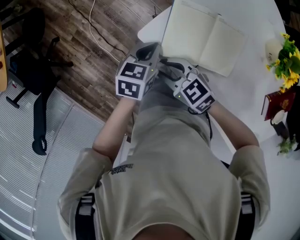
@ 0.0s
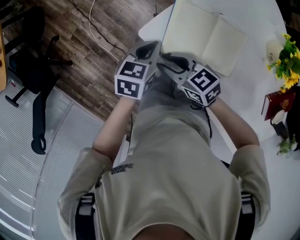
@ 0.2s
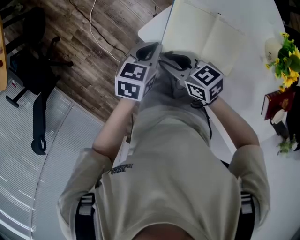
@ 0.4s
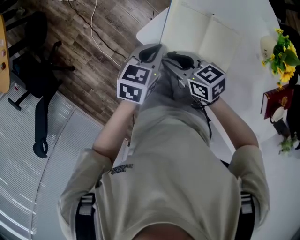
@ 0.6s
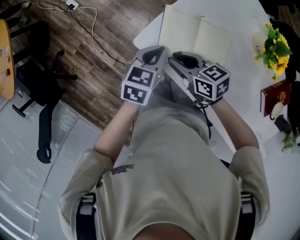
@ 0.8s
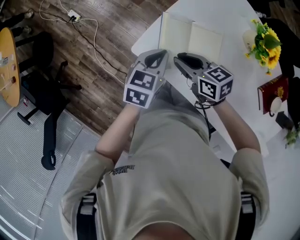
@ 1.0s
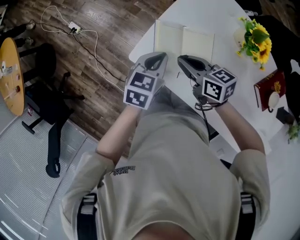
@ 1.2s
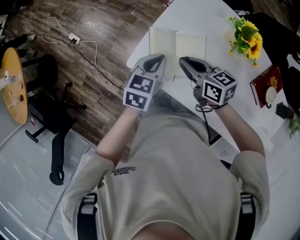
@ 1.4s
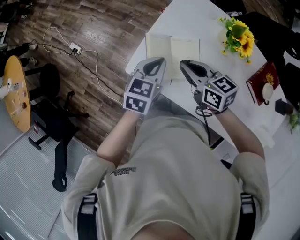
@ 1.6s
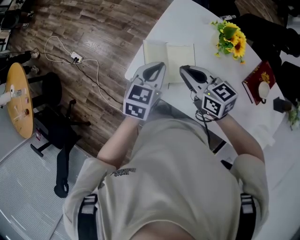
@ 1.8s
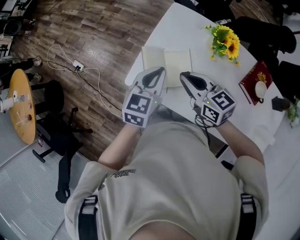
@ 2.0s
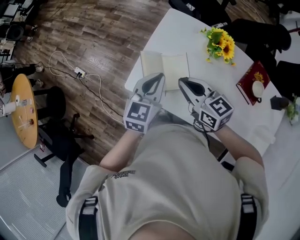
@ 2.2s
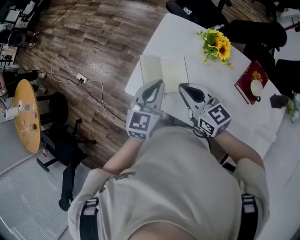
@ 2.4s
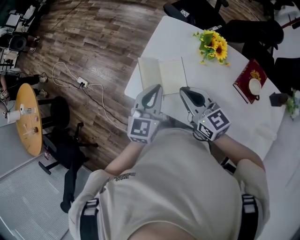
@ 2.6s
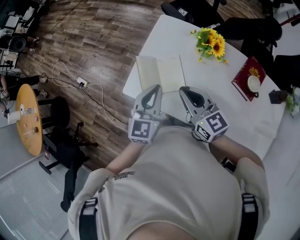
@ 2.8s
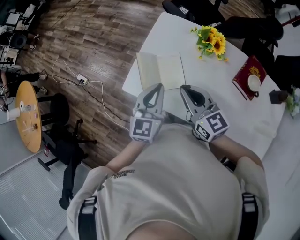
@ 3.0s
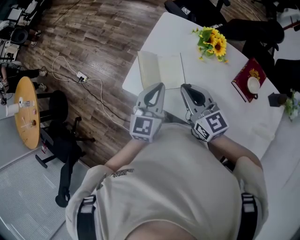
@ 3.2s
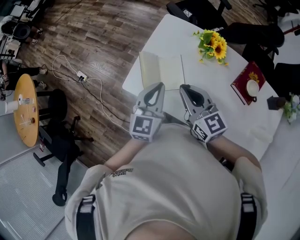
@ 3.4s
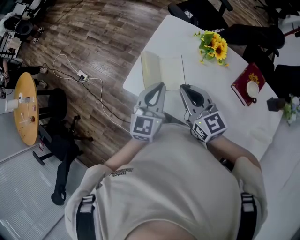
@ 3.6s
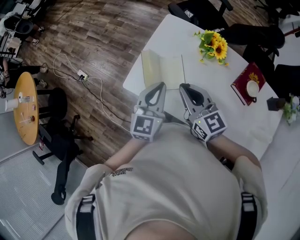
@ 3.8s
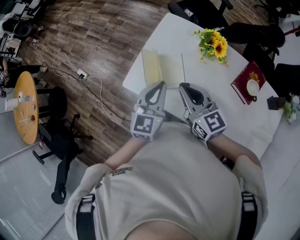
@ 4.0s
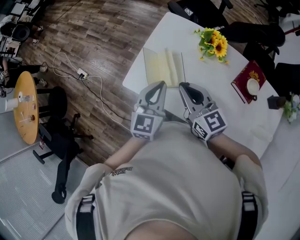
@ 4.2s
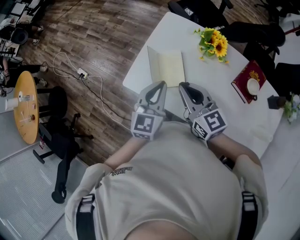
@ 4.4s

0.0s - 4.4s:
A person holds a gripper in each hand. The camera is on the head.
0.0s - 1.4s: The right gripper ends up approximately 20 cm from where it was, swivels approximately 40 degrees, and closes its fingers, while the left gripper travels upward by about 15 cm, and changes its angle by about 20 degrees.
1.4s - 3.0s: Both grippers move upward, backward and to the right, approximately 15 cm. The left gripper rotates roughly 30 degrees. The right gripper swivels about 30 degrees.
3.0s - 4.4s: The grippers move only a little.

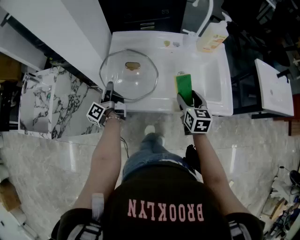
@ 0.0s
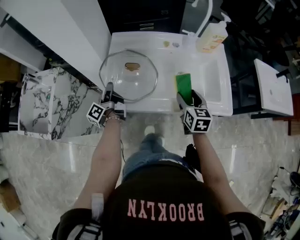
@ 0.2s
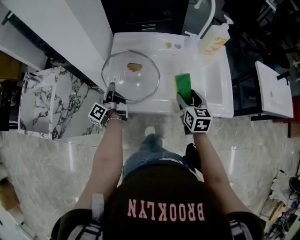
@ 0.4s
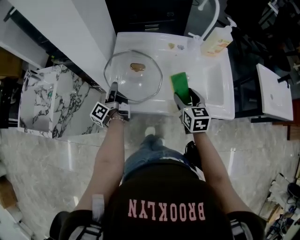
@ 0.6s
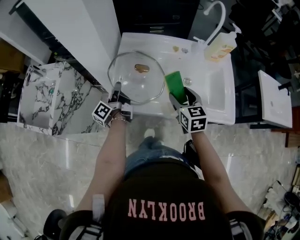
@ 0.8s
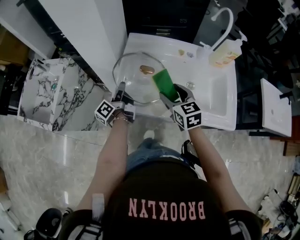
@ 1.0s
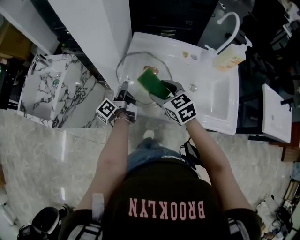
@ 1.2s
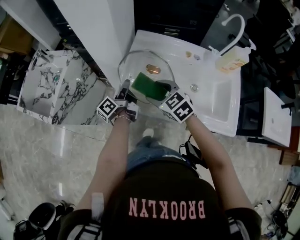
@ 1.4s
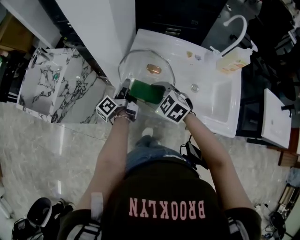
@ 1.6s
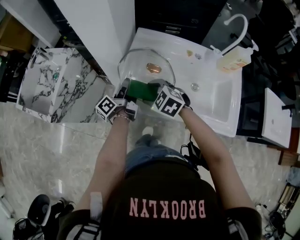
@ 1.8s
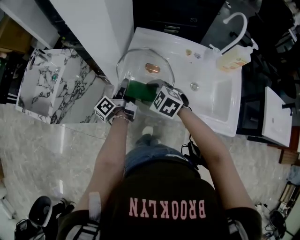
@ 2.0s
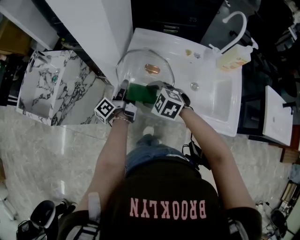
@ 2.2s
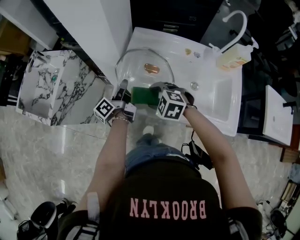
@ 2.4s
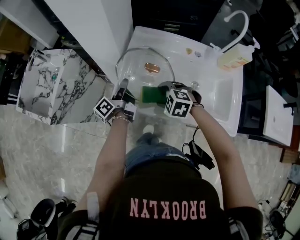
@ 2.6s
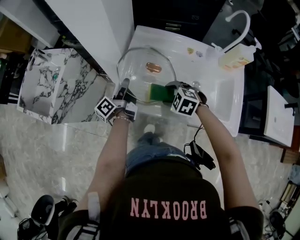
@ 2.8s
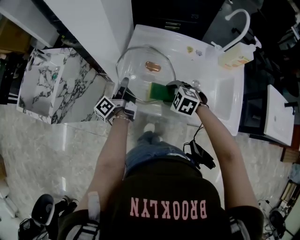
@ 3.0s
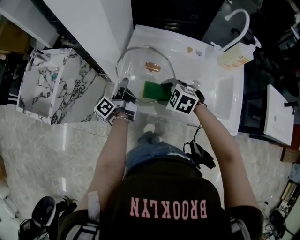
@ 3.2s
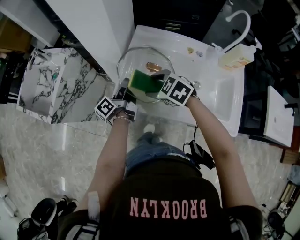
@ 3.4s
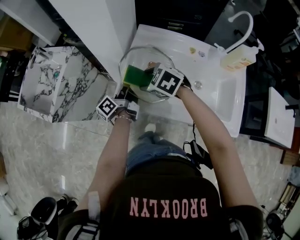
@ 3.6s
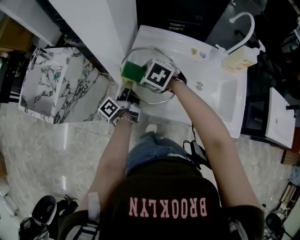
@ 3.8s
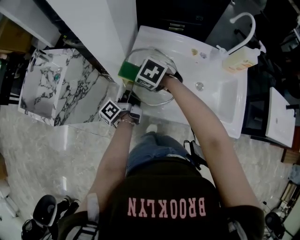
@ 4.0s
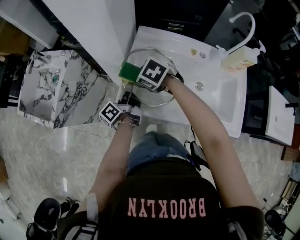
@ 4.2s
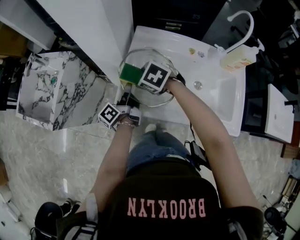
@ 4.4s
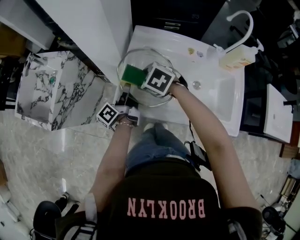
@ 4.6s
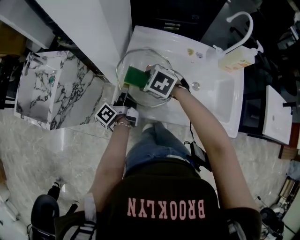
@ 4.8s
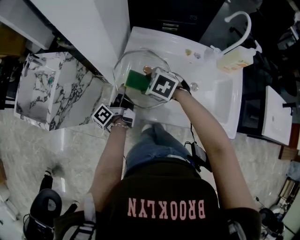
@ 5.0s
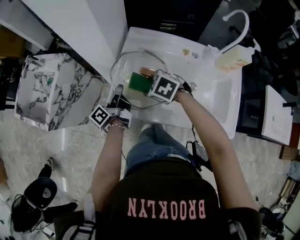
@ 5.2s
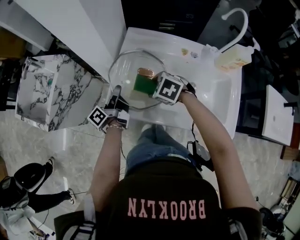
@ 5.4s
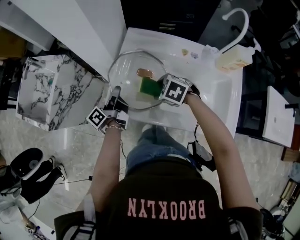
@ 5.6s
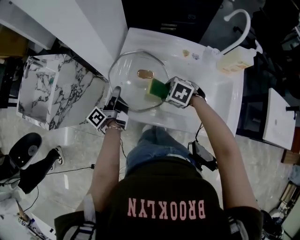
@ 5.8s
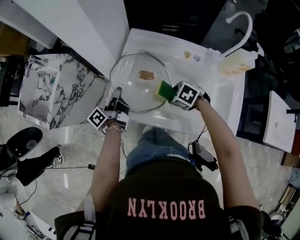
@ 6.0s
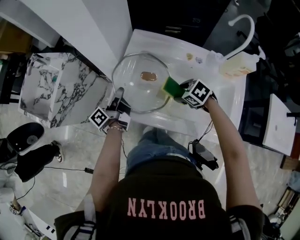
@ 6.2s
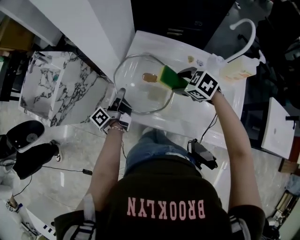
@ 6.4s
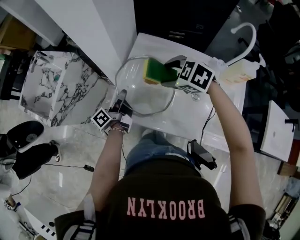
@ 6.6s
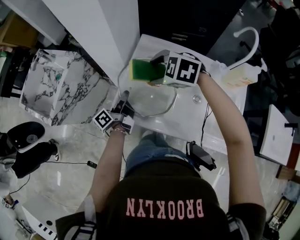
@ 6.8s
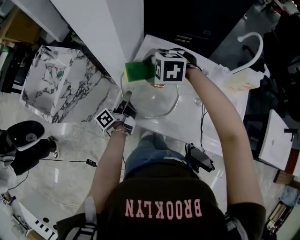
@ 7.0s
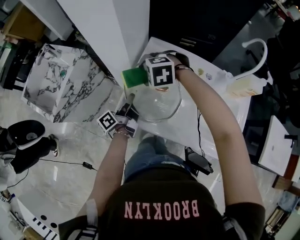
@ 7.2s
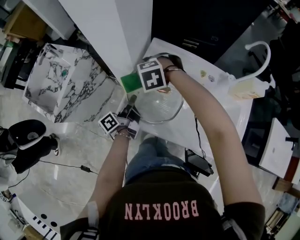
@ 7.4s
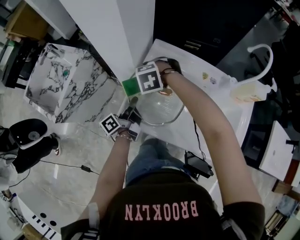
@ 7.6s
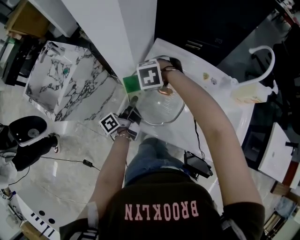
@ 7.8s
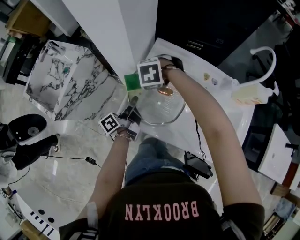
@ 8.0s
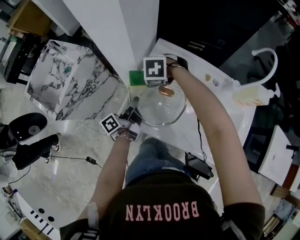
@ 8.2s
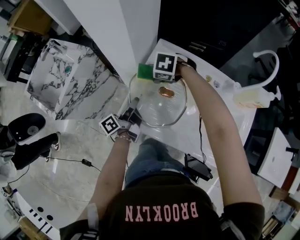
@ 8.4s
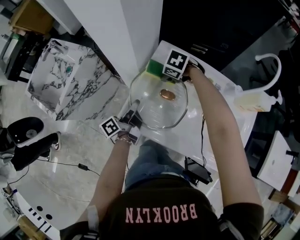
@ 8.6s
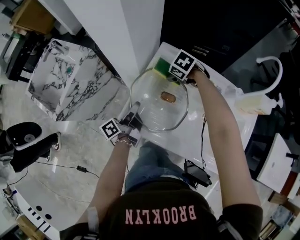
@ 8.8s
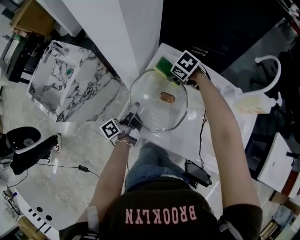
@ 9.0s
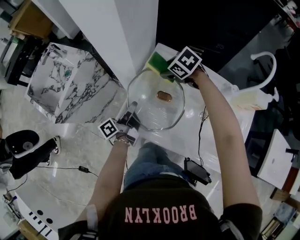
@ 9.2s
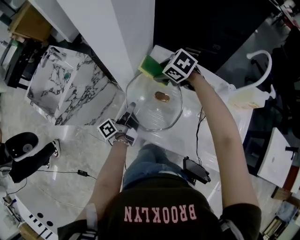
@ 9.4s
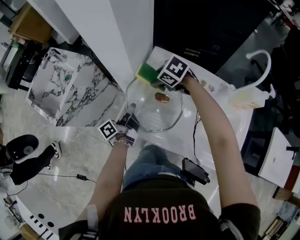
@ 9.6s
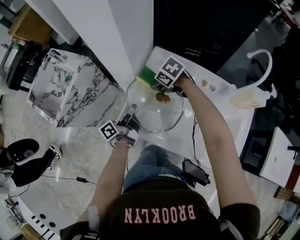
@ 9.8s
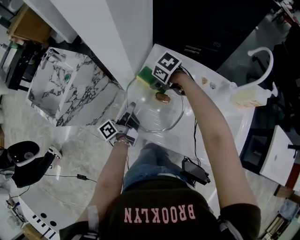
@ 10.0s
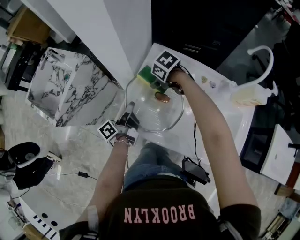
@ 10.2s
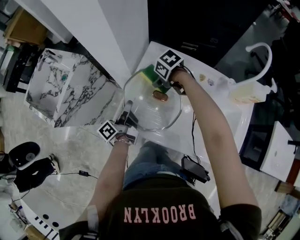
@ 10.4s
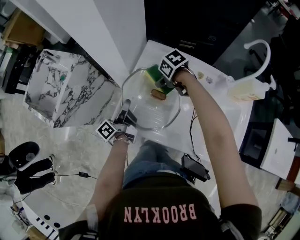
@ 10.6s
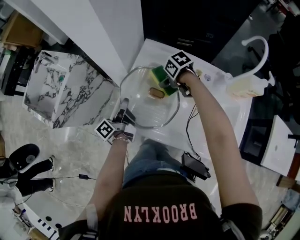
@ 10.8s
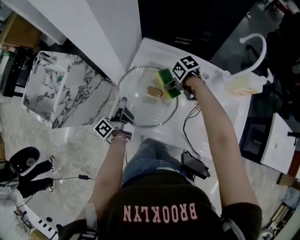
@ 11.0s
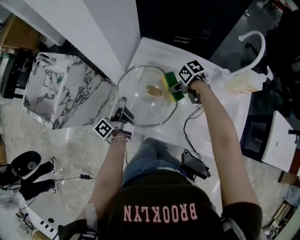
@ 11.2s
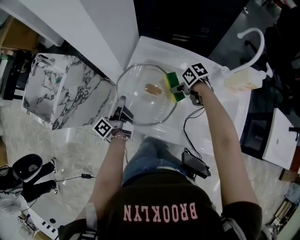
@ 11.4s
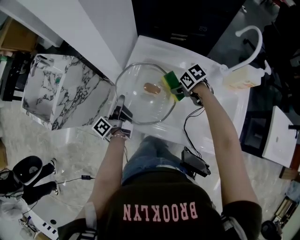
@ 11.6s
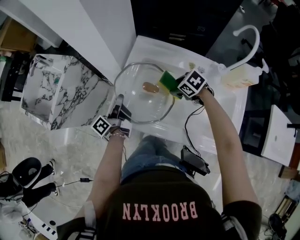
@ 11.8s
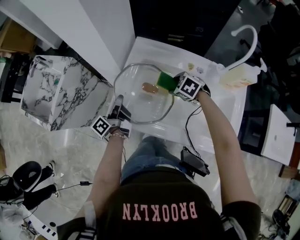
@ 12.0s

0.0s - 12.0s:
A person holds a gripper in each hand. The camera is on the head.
0.0s - 1.6s: The right gripper shifts by some 25 cm, and turns by roughly 70 degrees.
1.6s - 3.0s: The right gripper ends up some 10 cm from where it was.
3.0s - 4.4s: The right gripper shifts by roughly 15 cm.
4.4s - 6.0s: The right gripper moves some 20 cm.
6.0s - 7.6s: The right gripper ends up roughly 25 cm from where it was, and rolls counterclockwise, seen from behind, by some 50 degrees.
7.6s - 9.0s: The right gripper ends up about 15 cm from where it was, and rotates around the line of its fingers by some 50 degrees, clockwise from behind.
9.0s - 10.4s: The right gripper goes upward and returns, approximately 5 cm each way, and turns by about 20 degrees.
10.4s - 12.0s: The right gripper ends up approximately 15 cm from where it was, and turns by some 30 degrees.

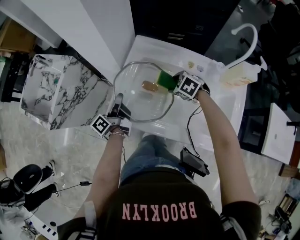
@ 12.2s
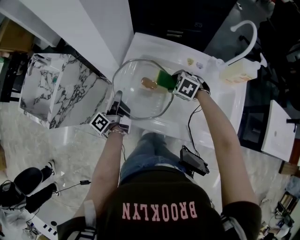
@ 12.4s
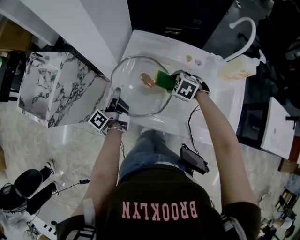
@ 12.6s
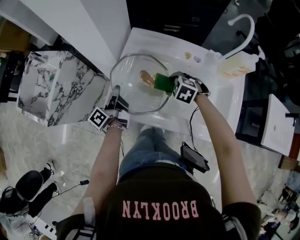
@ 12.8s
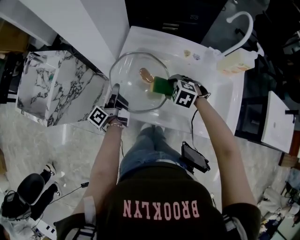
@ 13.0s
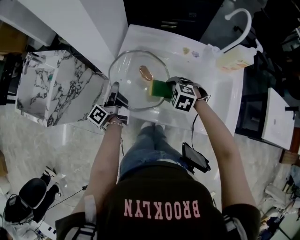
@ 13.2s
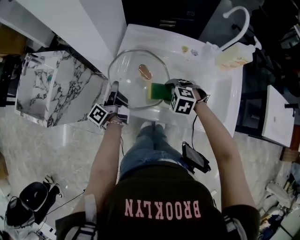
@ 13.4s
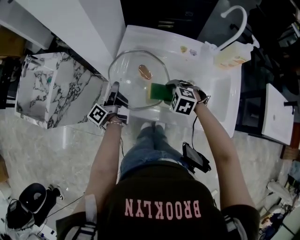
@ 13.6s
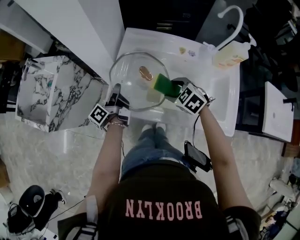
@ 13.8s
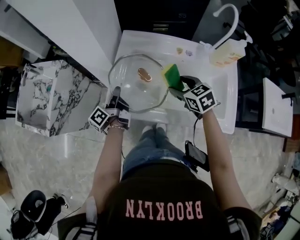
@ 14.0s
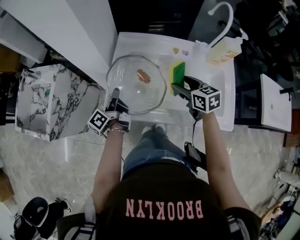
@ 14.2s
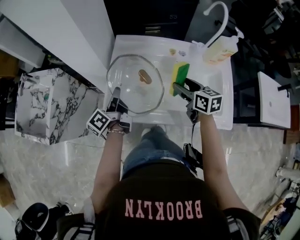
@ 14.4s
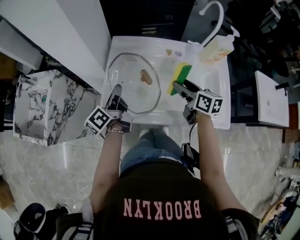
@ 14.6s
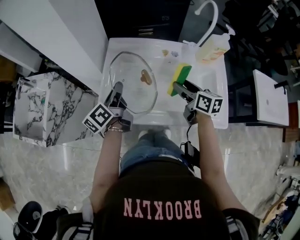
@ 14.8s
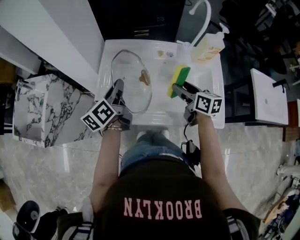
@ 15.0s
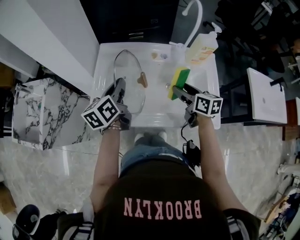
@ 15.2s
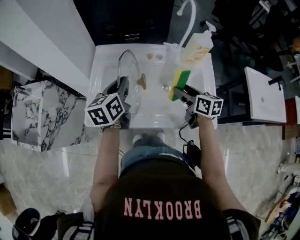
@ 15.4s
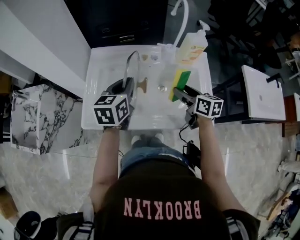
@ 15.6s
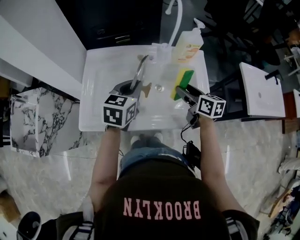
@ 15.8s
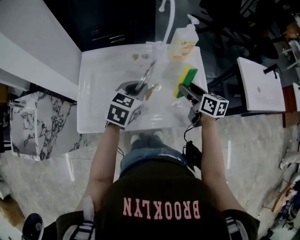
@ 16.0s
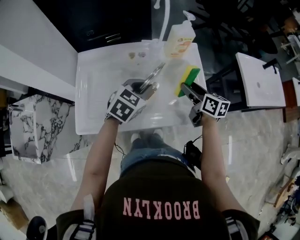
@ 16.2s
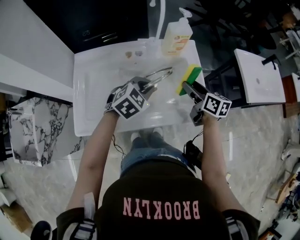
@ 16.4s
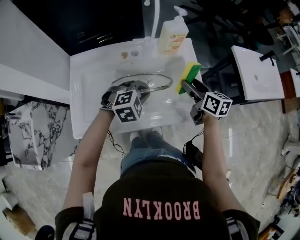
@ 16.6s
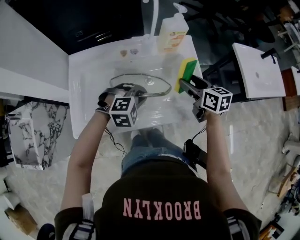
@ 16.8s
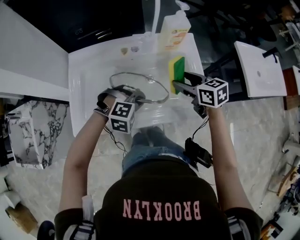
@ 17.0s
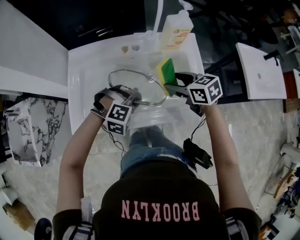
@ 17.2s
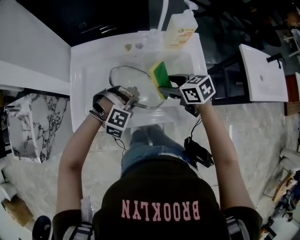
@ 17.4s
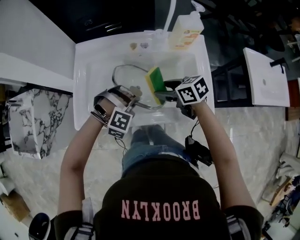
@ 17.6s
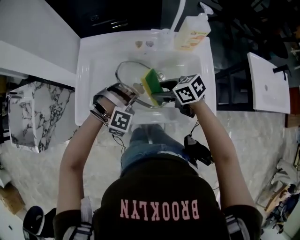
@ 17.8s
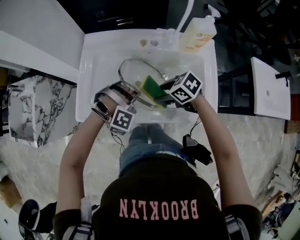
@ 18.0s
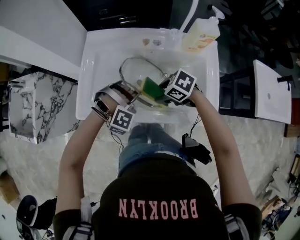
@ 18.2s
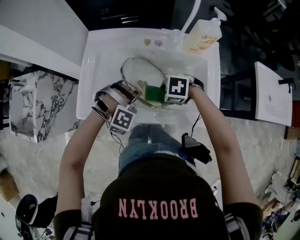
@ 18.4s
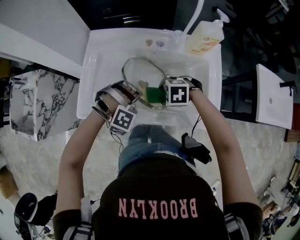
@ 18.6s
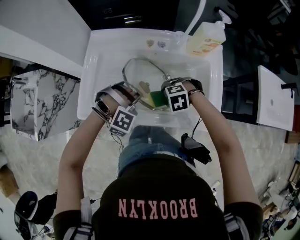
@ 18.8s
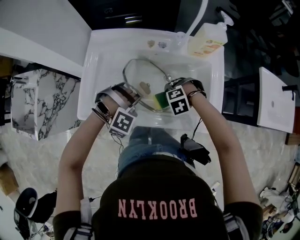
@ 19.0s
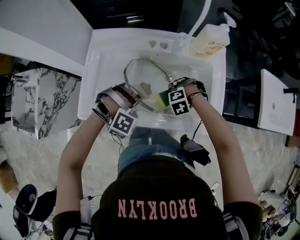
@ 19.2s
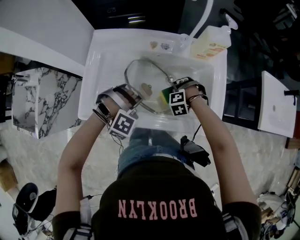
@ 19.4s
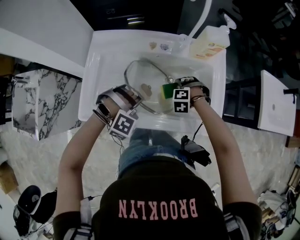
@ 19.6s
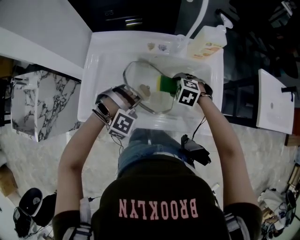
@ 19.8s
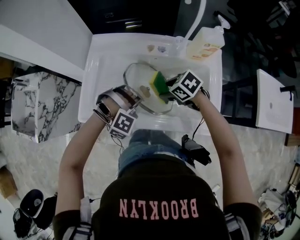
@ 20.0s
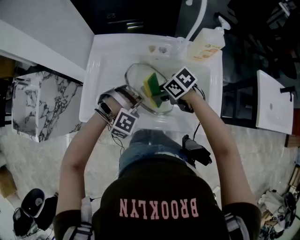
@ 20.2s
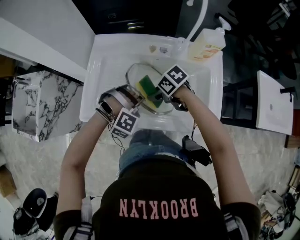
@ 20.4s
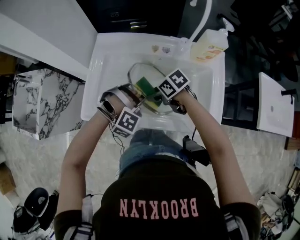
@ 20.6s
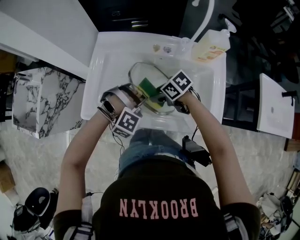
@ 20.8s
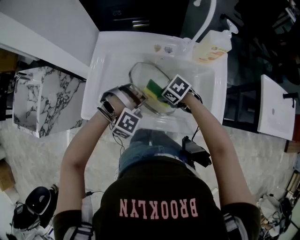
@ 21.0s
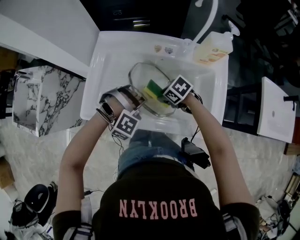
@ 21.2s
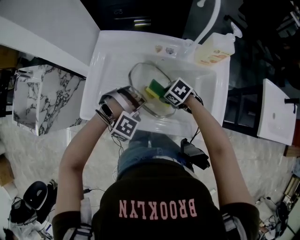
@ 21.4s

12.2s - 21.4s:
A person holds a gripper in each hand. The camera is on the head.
12.2s - 13.8s: The right gripper moves about 10 cm.
13.8s - 15.2s: The right gripper ends up approximately 20 cm from where it was, and rotates around the line of its fingers by about 60 degrees, clockwise from behind.
15.2s - 16.8s: The right gripper shifts by about 15 cm.
16.8s - 18.4s: The right gripper shifts by about 20 cm, and tips its fingers downward by some 40 degrees.
18.4s - 19.8s: The right gripper travels downward and back again, approximately 10 cm each way, and swivels some 20 degrees.
19.8s - 21.4s: The right gripper turns by about 30 degrees.
